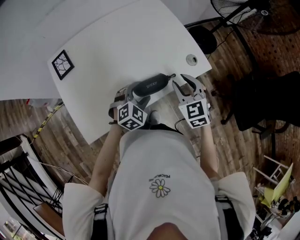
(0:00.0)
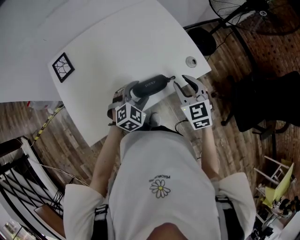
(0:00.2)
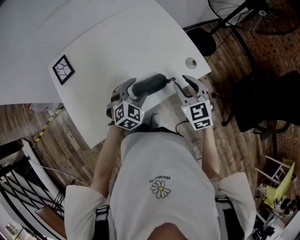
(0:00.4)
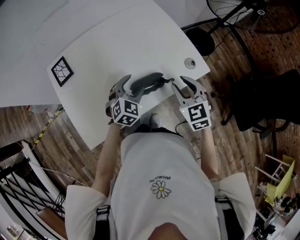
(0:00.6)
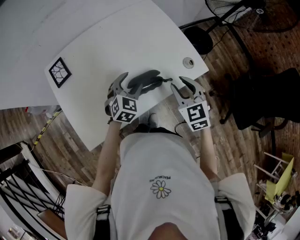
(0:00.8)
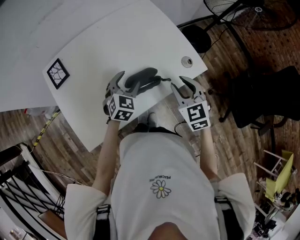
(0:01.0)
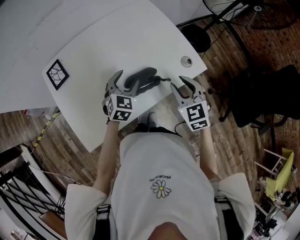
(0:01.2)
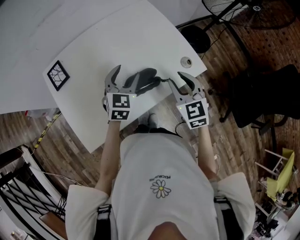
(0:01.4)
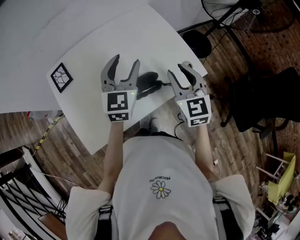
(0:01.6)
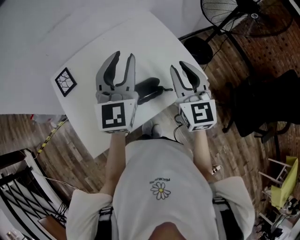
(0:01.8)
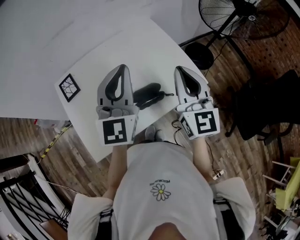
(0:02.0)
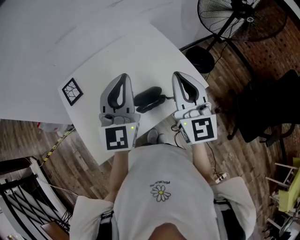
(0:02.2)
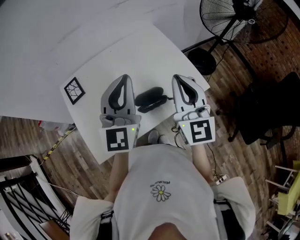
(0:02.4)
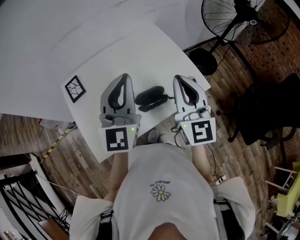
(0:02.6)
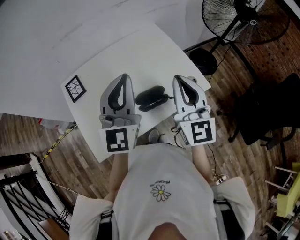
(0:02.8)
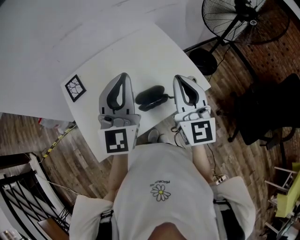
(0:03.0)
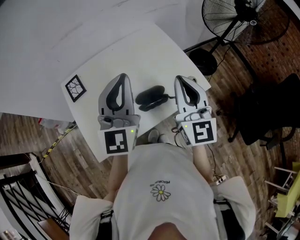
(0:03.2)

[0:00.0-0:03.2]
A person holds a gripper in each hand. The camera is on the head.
0:00.0 to 0:01.6: The right gripper shifts about 10 cm upward, while the left gripper shifts some 25 cm upward and forward, and tilts its fingers roughly 30 degrees upward.
0:01.6 to 0:03.2: The right gripper moves upward, about 10 cm, swivels approximately 20 degrees, and closes up. The left gripper is displaced upward and backward by roughly 15 cm, swivels some 20 degrees, and closes up.

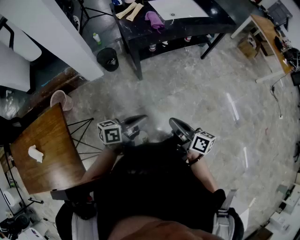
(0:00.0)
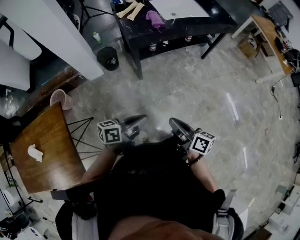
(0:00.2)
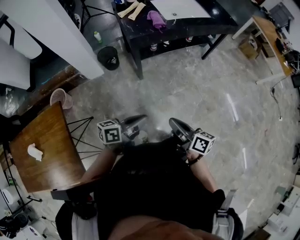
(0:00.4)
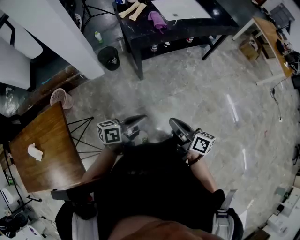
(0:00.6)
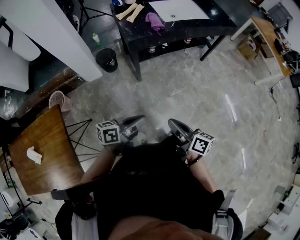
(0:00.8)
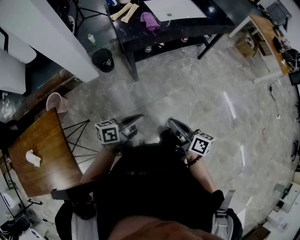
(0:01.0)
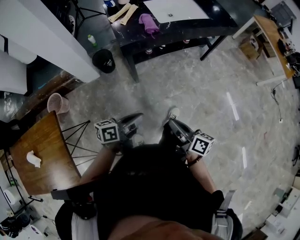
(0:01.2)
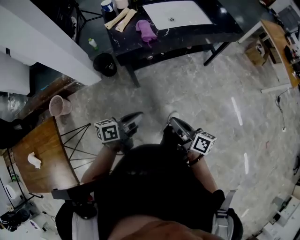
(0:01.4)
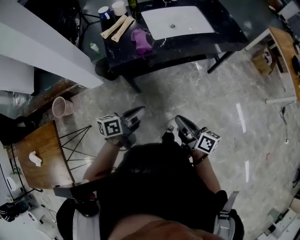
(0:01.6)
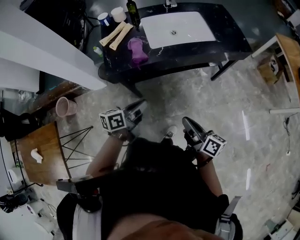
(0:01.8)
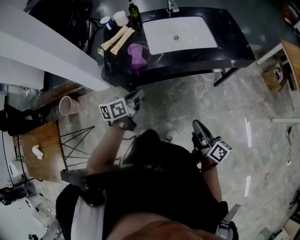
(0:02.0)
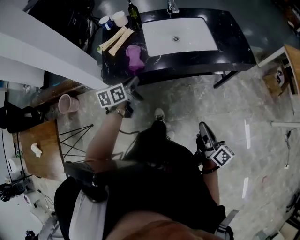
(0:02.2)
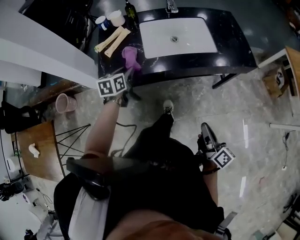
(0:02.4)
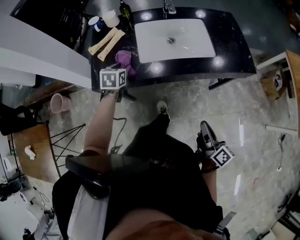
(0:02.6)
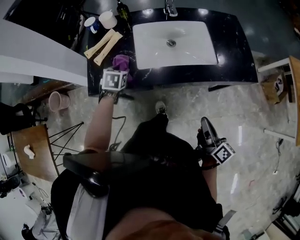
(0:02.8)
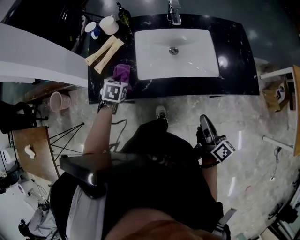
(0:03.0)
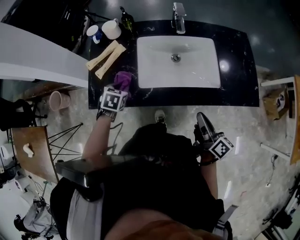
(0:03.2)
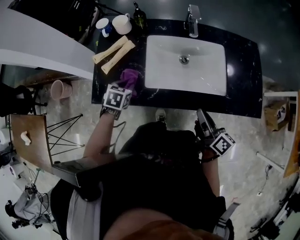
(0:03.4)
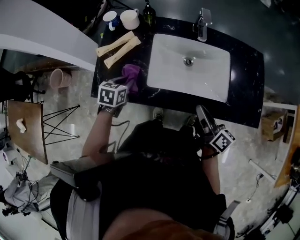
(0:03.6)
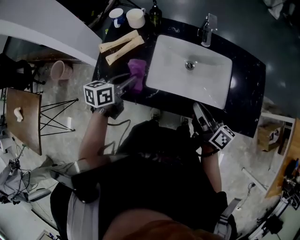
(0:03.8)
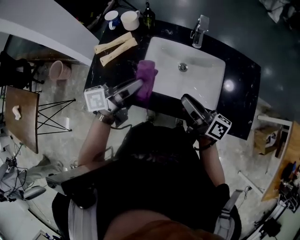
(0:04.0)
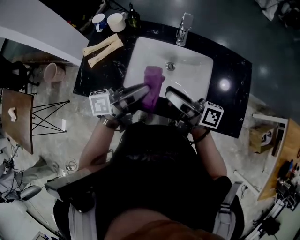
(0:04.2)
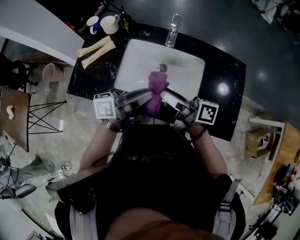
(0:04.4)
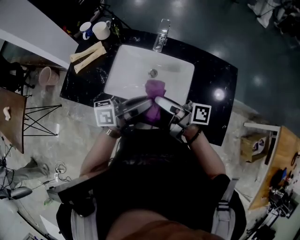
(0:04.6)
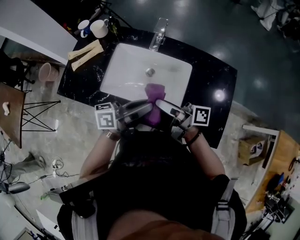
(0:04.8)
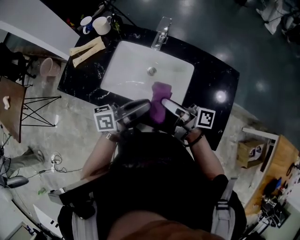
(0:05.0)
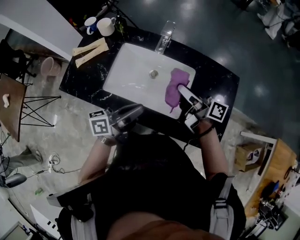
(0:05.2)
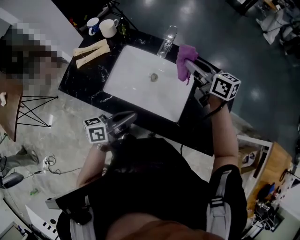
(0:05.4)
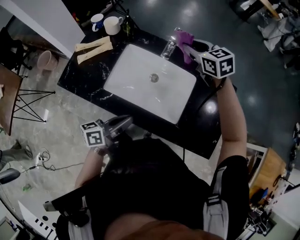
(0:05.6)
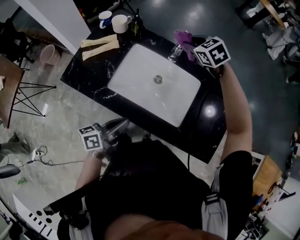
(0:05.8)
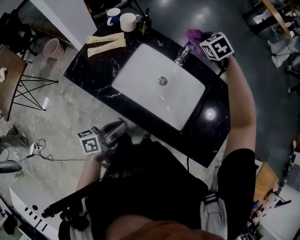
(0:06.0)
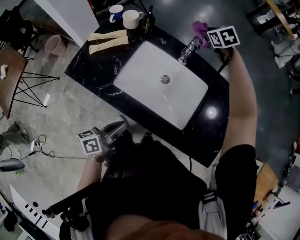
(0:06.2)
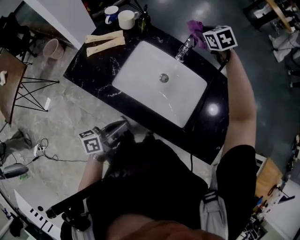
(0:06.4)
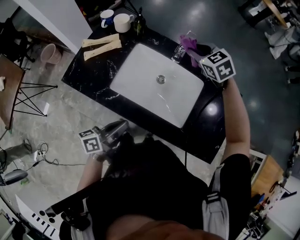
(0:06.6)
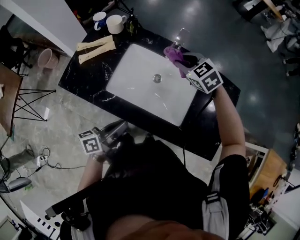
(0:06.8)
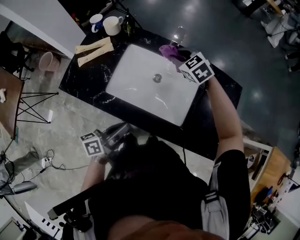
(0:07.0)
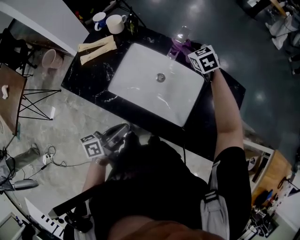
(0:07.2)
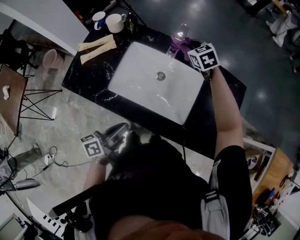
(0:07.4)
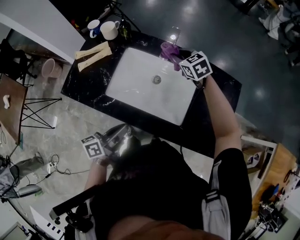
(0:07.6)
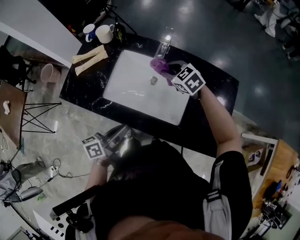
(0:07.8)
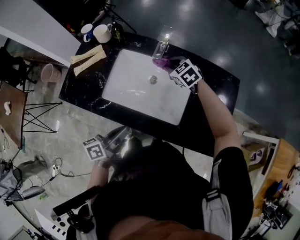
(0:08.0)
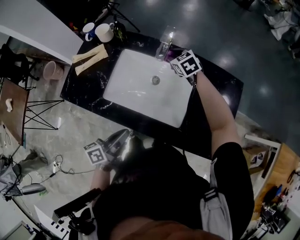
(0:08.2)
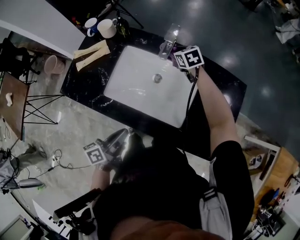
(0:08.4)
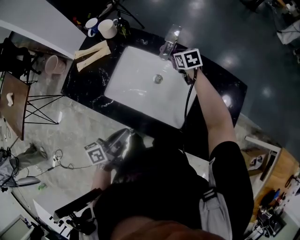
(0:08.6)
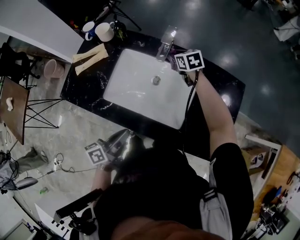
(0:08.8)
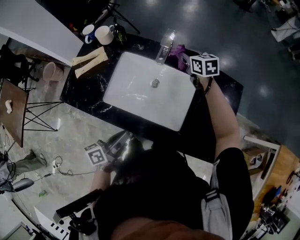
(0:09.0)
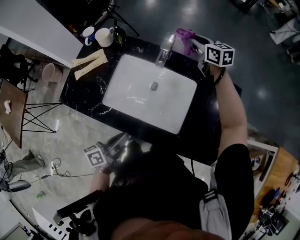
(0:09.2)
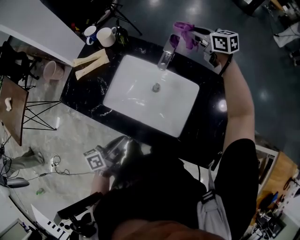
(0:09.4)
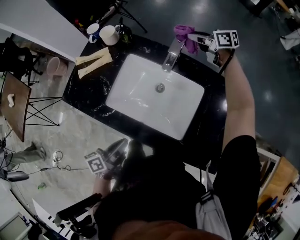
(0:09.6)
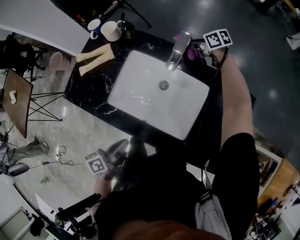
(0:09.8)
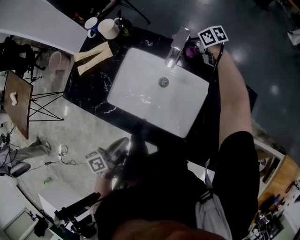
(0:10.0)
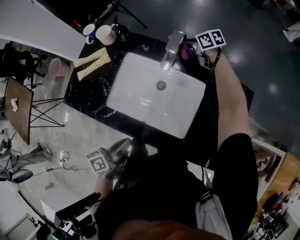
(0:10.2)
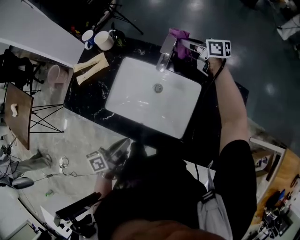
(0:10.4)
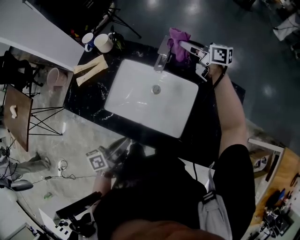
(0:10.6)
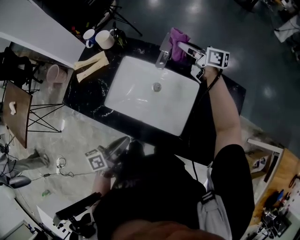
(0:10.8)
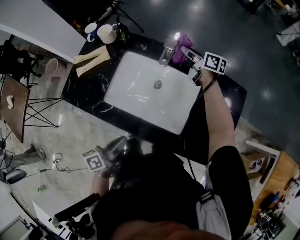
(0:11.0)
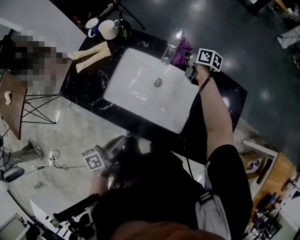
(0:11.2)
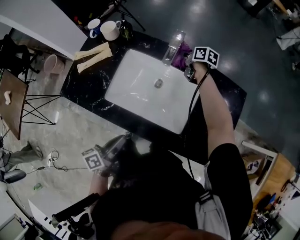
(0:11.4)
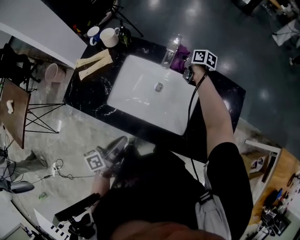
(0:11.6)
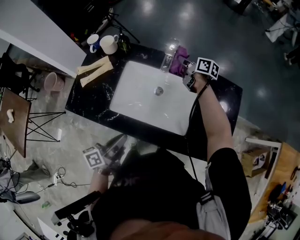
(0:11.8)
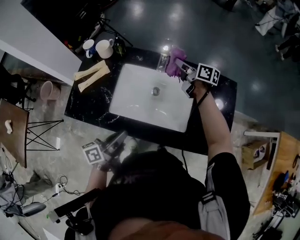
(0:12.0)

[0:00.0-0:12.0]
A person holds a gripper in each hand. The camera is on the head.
0:00.0 to 0:01.6: The right gripper shifts some 30 cm forward and to the right, while the left gripper moves forward, approximately 25 cm.
0:01.6 to 0:03.0: The left gripper moves forward, approximately 40 cm, angles its fingers downward, by approximately 40 degrees, and opens. Meanwhile the right gripper travels forward and to the right by some 40 cm.
0:03.0 to 0:04.4: The right gripper travels forward by roughly 20 cm, changes its angle by approximately 50 degrees, and opens its fingers, while the left gripper moves to the right and upward, some 30 cm, and tilts its fingers approximately 60 degrees upward.
0:04.4 to 0:06.0: The left gripper travels backward, downward and to the left by roughly 15 cm, and turns by roughly 30 degrees, while the right gripper moves forward, some 35 cm, tilts its fingers roughly 60 degrees downward, and closes its fingers.
0:06.0 to 0:07.6: The right gripper goes forward and backward, some 20 cm each way, reversing 3 times, and swivels approximately 20 degrees.
0:07.6 to 0:09.0: The right gripper goes about 10 cm to the right and forward, and changes its angle by about 30 degrees.
0:09.0 to 0:10.4: The right gripper moves up and down over some 20 cm, changing direction 2 times, and changes its angle by roughly 30 degrees.
0:10.4 to 0:12.0: The left gripper moves about 5 cm, while the right gripper goes up and down, roughly 20 cm each way, reversing 2 times, and rotates about 30 degrees.

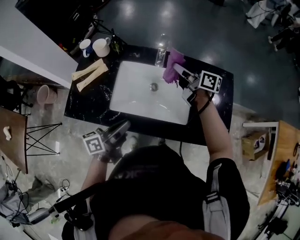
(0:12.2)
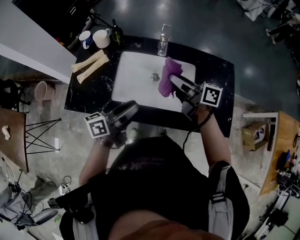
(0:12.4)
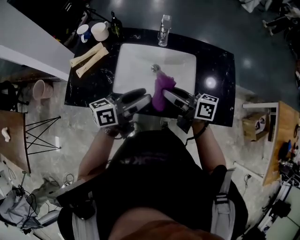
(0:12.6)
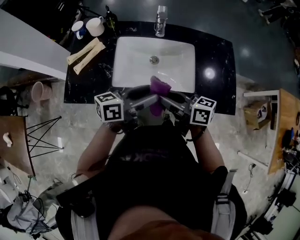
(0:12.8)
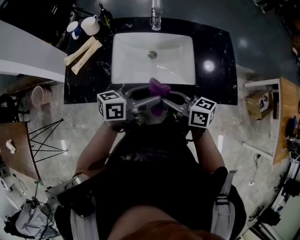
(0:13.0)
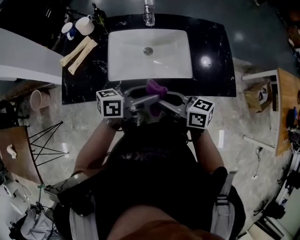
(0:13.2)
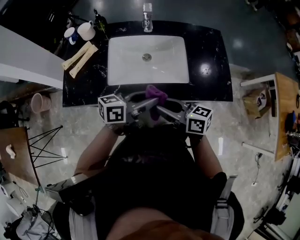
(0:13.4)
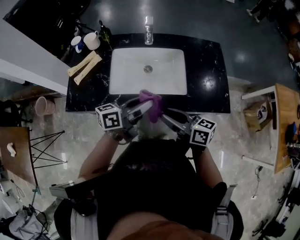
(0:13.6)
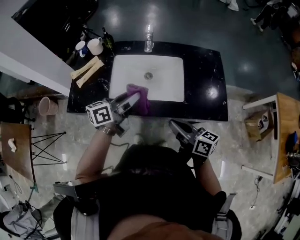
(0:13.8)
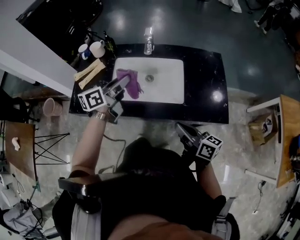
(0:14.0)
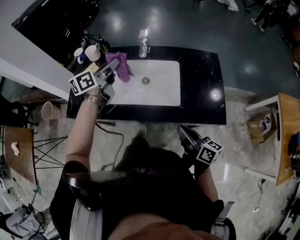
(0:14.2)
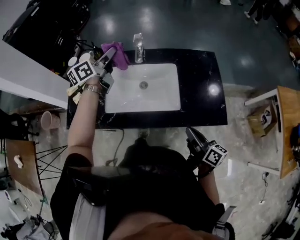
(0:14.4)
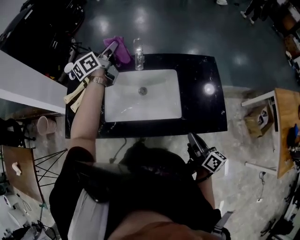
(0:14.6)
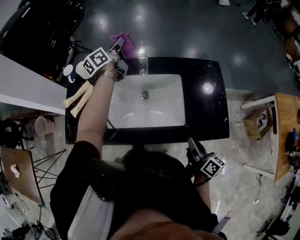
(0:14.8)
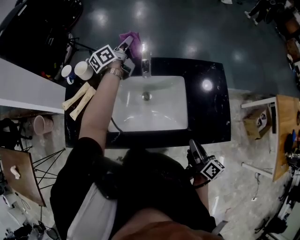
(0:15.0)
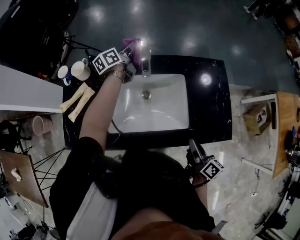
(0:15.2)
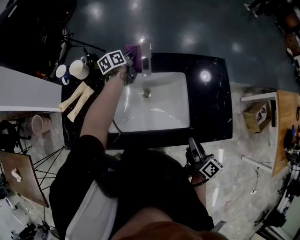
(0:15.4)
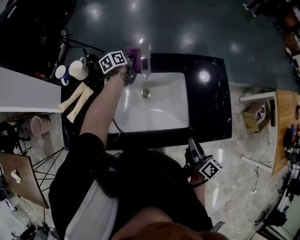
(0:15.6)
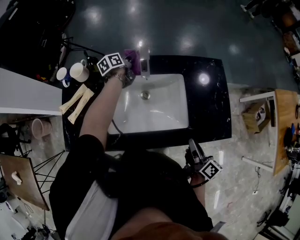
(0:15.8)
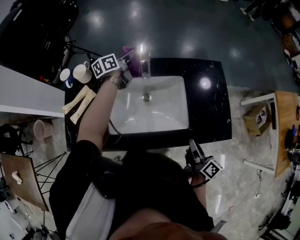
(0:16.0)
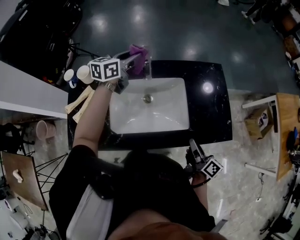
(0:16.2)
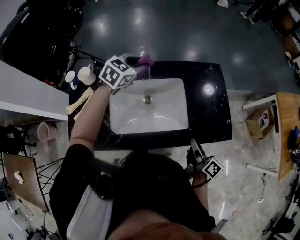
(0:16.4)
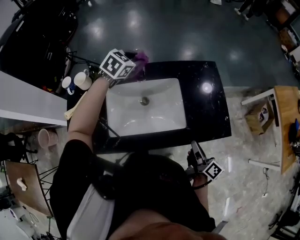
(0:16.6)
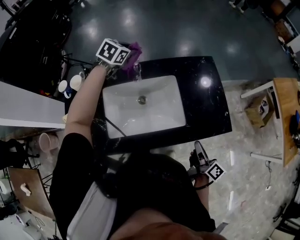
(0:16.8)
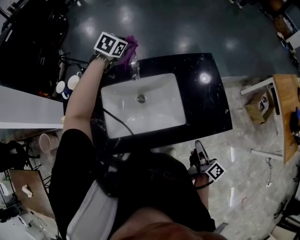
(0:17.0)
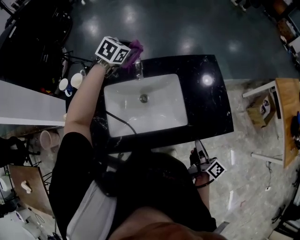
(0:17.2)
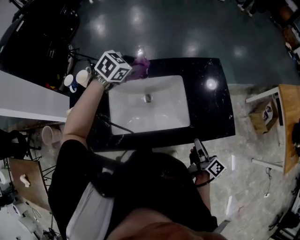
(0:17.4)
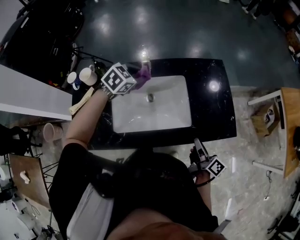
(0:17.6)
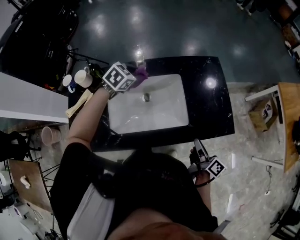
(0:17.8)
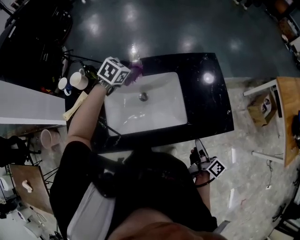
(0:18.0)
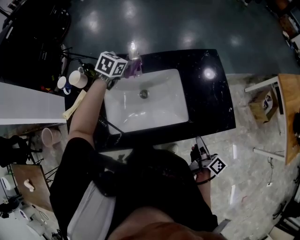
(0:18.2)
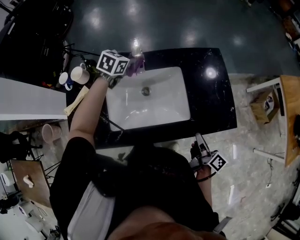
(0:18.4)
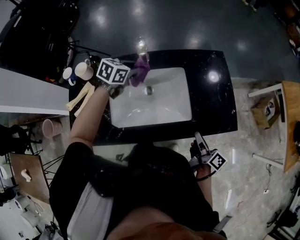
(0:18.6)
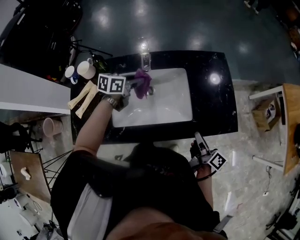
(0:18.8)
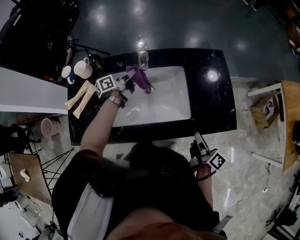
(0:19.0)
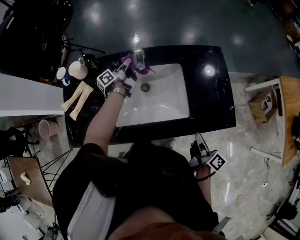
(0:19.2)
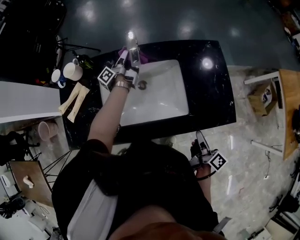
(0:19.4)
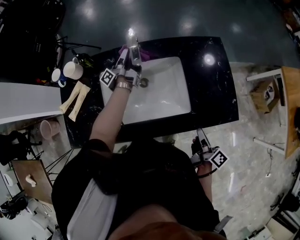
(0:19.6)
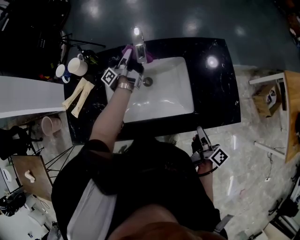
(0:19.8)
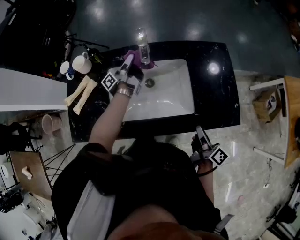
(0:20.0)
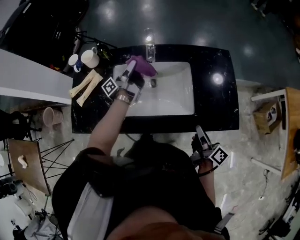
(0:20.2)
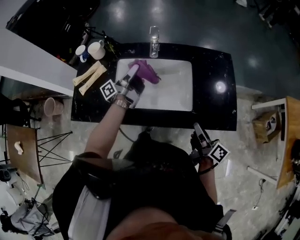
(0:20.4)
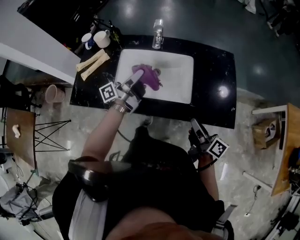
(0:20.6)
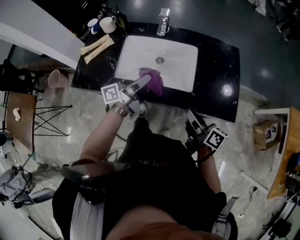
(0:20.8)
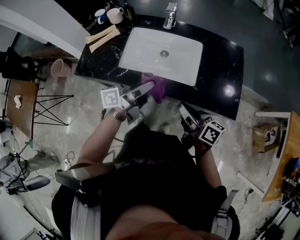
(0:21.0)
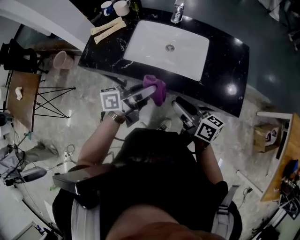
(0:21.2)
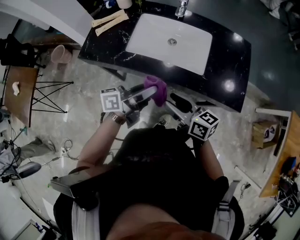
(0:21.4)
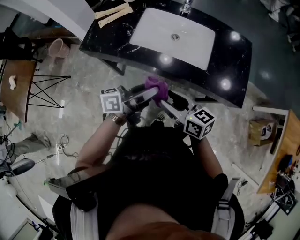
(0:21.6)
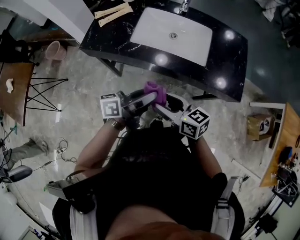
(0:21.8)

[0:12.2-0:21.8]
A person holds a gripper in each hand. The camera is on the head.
0:12.2 to 0:13.8: The right gripper changes place by roughly 35 cm. The left gripper shifts by about 10 cm, and opens its fingers.
0:13.8 to 0:15.4: The right gripper moves forward, to the right and downward, approximately 15 cm, and rotates some 40 degrees. The left gripper travels forward by some 40 cm, and rotates some 20 degrees.
0:15.4 to 0:17.0: The right gripper shifts roughly 5 cm to the right. The left gripper goes roughly 15 cm upward and to the right, and rolls clockwise, seen from behind, by some 70 degrees.
0:17.0 to 0:18.6: The left gripper goes forward and backward, about 15 cm each way, reversing 2 times.
0:18.6 to 0:20.2: The left gripper swings forward and backward, approximately 15 cm each way, with 2 reversals, and points its fingers about 50 degrees further upward.
0:20.2 to 0:21.8: The left gripper moves backward, roughly 50 cm, and swivels some 30 degrees. Meanwhile the right gripper is displaced to the left and backward by about 25 cm, swivels some 60 degrees, and opens up.
